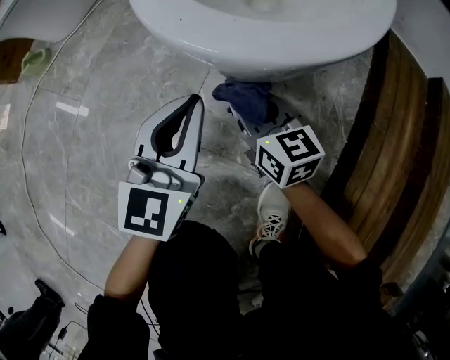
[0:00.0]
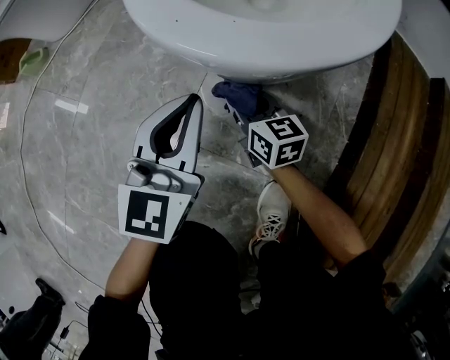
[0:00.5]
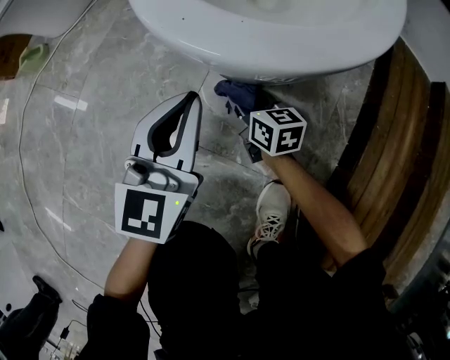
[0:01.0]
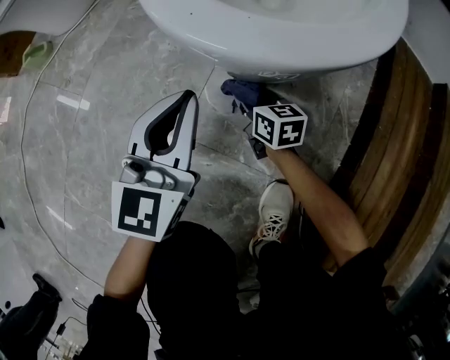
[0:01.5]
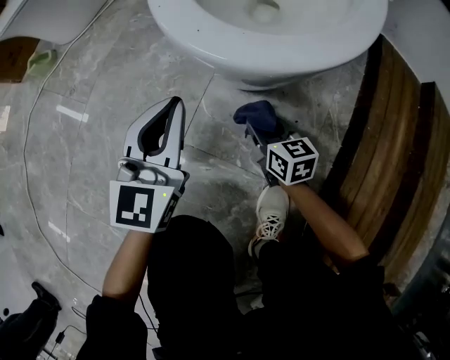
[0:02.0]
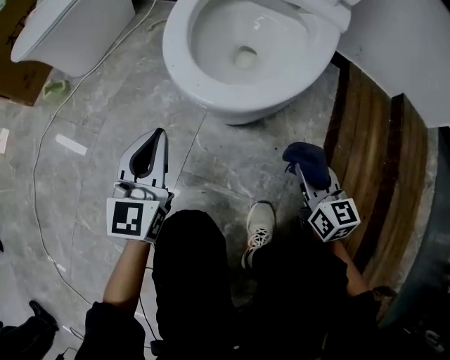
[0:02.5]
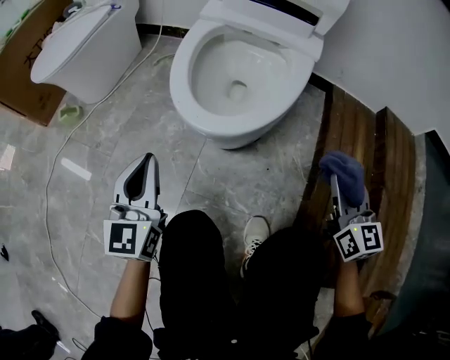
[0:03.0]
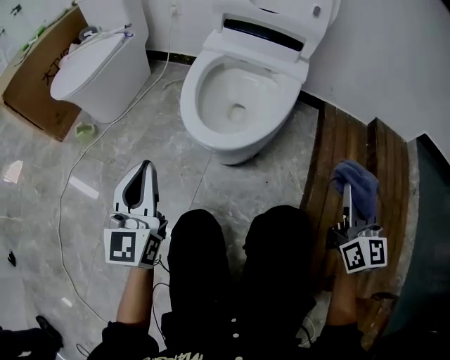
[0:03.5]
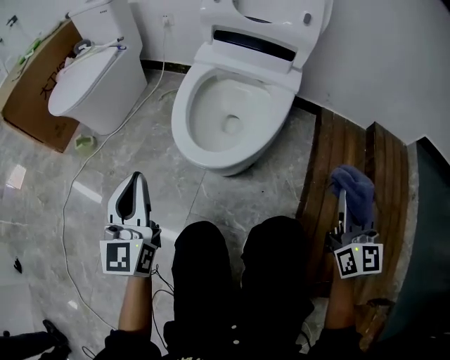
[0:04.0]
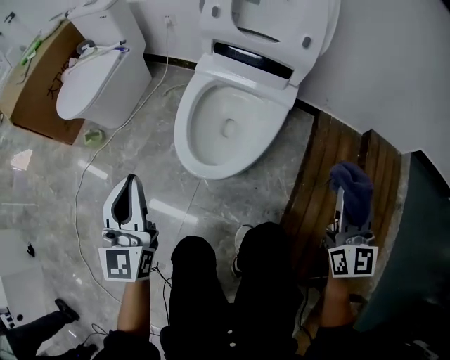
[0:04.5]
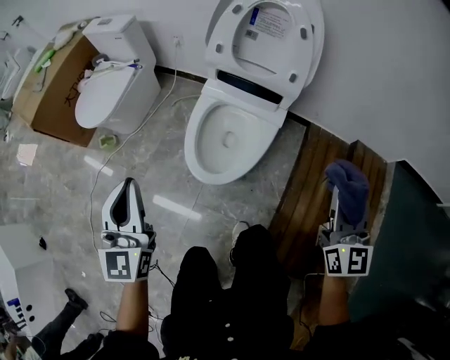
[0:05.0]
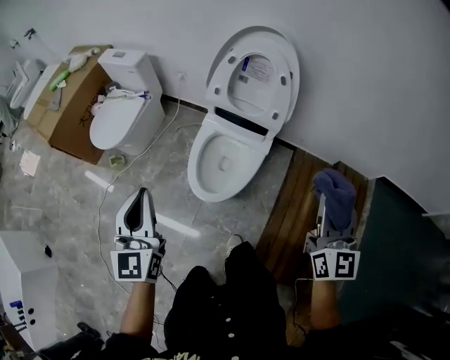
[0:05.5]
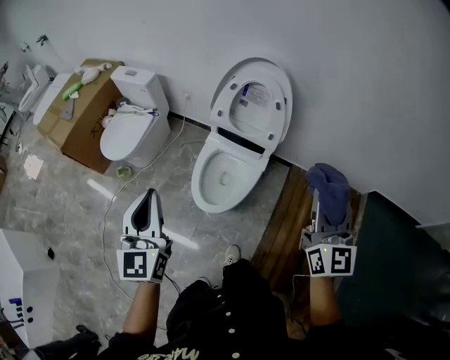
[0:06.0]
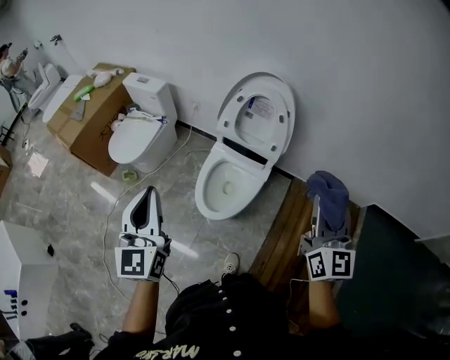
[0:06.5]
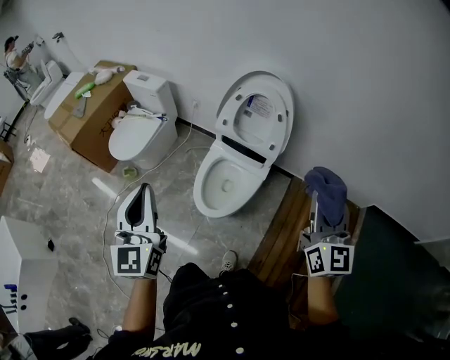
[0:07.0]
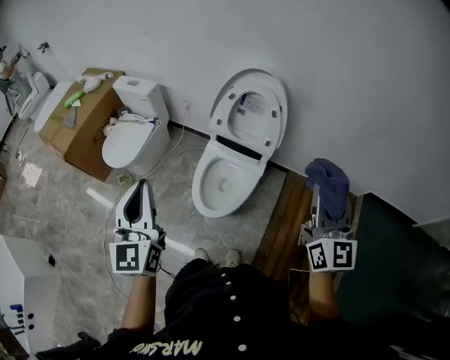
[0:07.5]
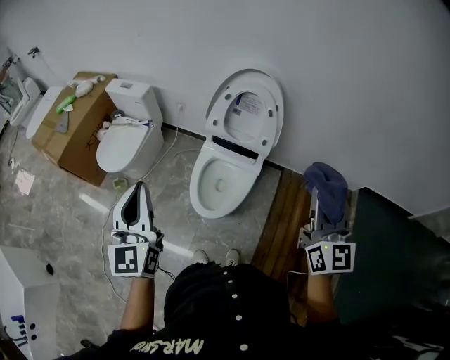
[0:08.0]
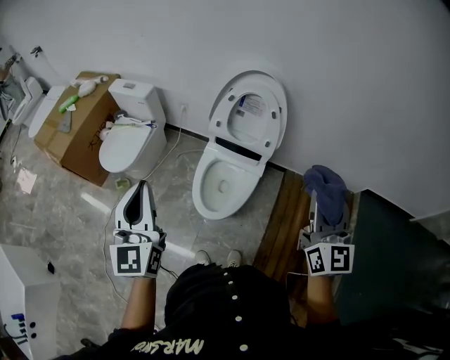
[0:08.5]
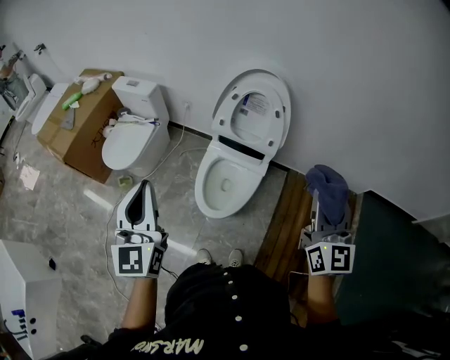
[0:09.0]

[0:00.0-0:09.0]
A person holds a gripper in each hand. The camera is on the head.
0:00.0 to 0:02.0: The right gripper moves downward, approximately 10 cm.
0:02.0 to 0:04.5: The right gripper travels upward and to the right by approximately 70 cm, and tilts its fingers roughly 30 degrees upward. The left gripper heads upward, covering some 40 cm.
0:04.5 to 0:07.0: Both grippers move upward, about 50 cm.
0:07.0 to 0:09.0: The right gripper shifts by approximately 5 cm; the left gripper shifts by roughly 5 cm.

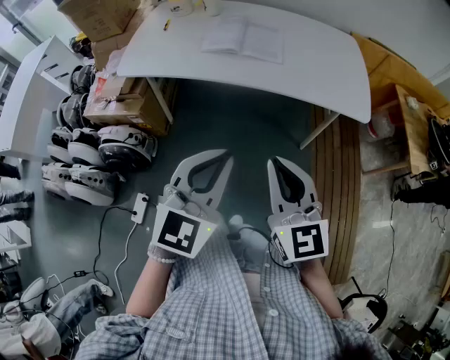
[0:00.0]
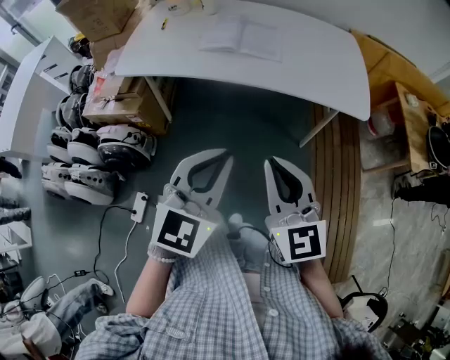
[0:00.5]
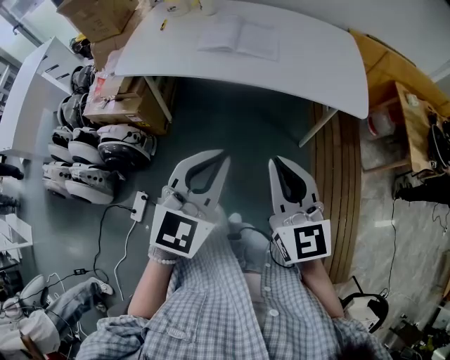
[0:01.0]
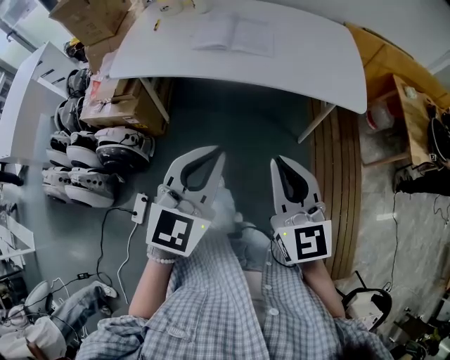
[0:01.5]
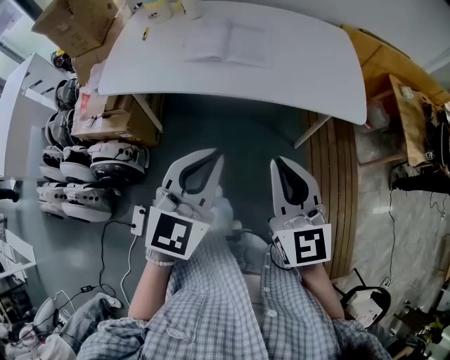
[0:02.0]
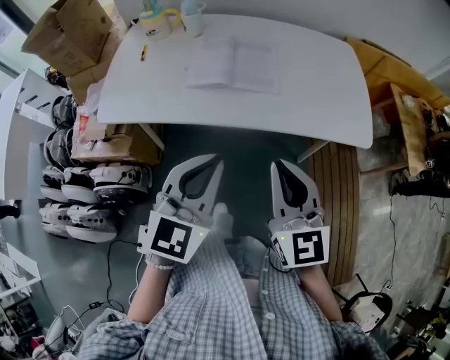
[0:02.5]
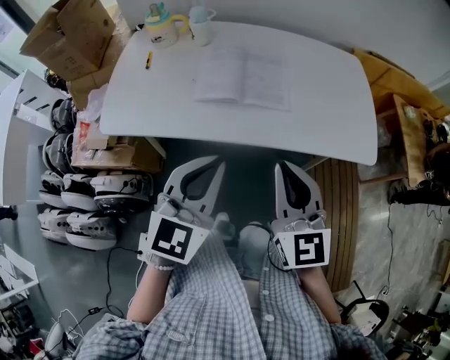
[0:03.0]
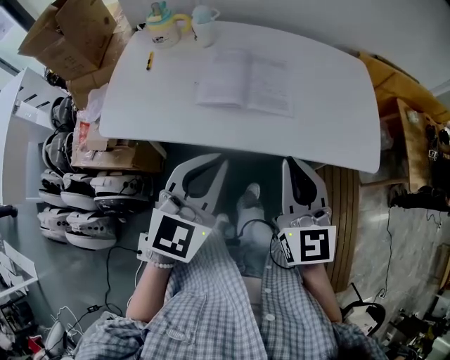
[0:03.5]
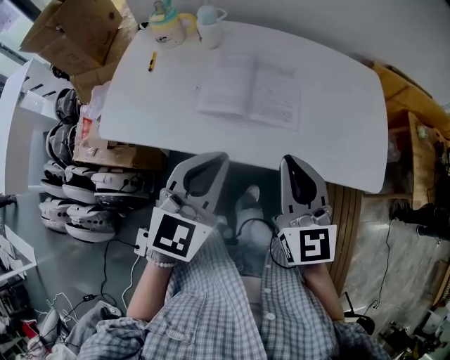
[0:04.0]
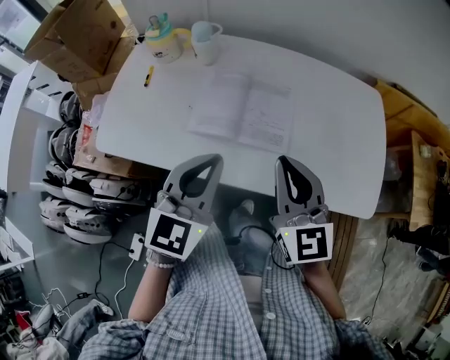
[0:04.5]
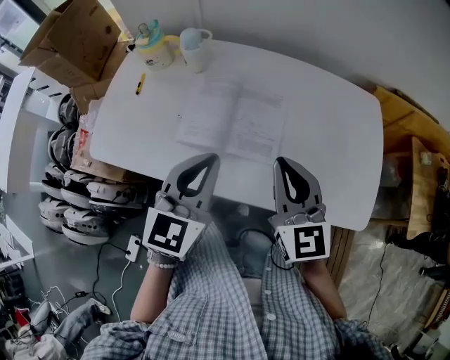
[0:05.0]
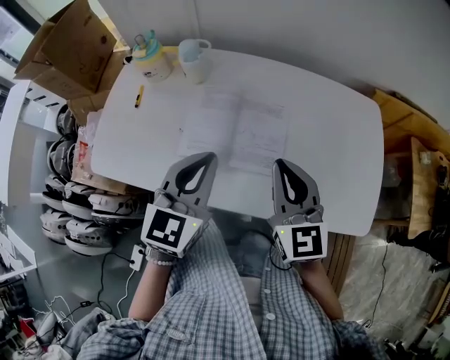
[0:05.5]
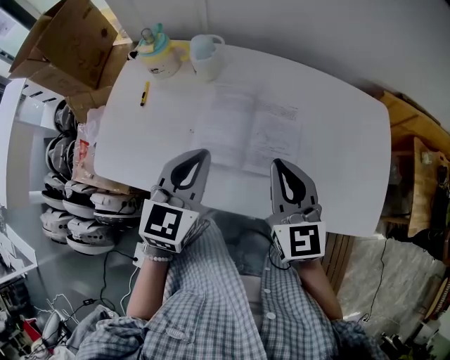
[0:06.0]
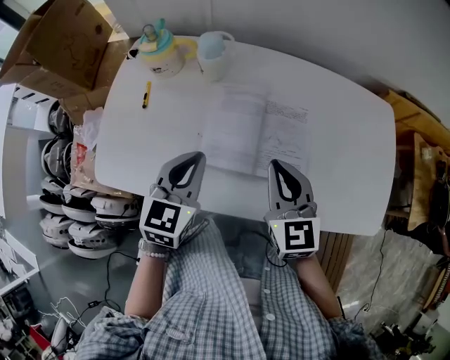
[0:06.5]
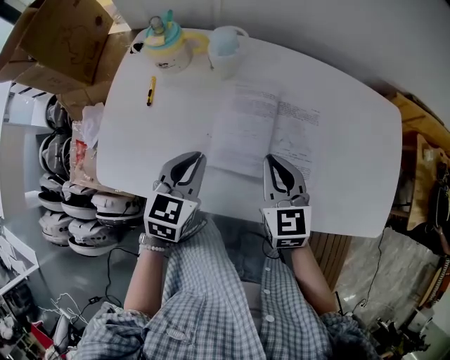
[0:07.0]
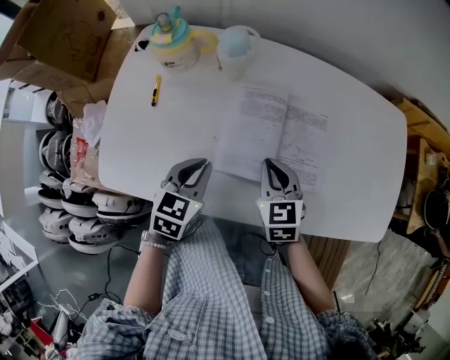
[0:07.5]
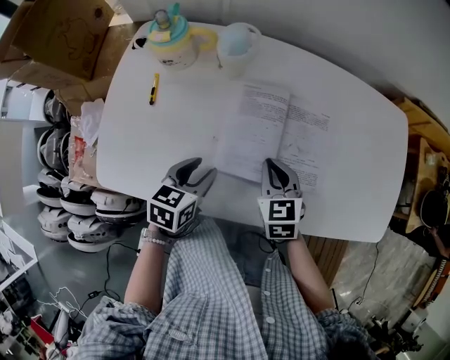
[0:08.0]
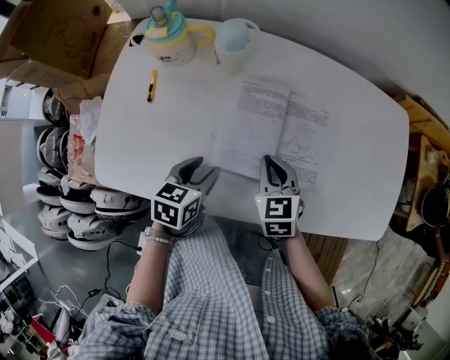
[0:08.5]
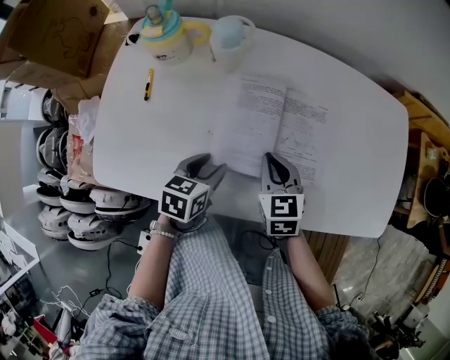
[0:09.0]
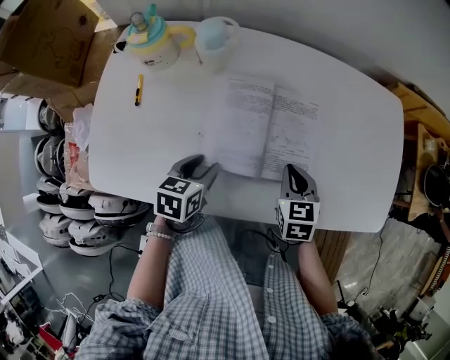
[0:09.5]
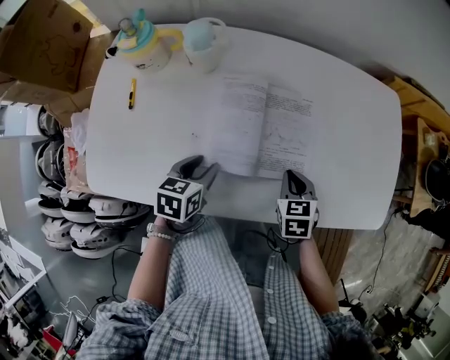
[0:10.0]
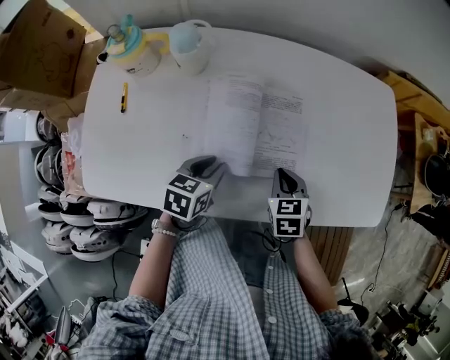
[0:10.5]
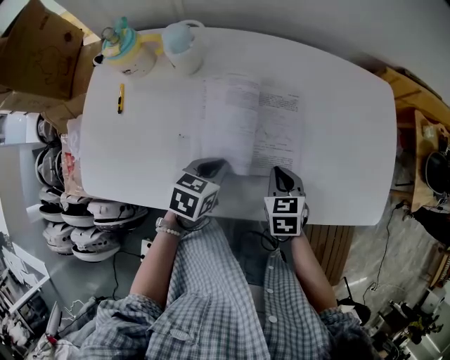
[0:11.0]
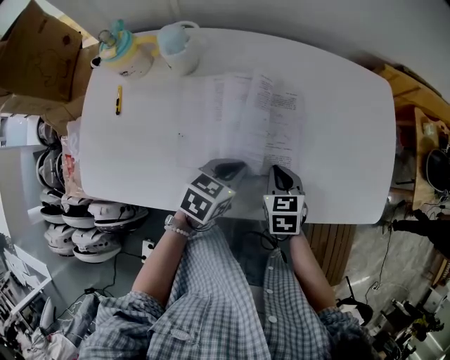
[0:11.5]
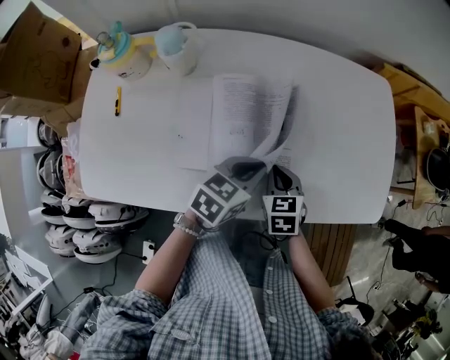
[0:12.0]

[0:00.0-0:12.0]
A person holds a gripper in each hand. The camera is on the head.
0:00.0 to 0:02.0: The grippers both shift forward by approximately 5 cm.
0:02.0 to 0:04.0: The grippers both shift forward by approximately 25 cm.
0:04.0 to 0:06.0: The two grippers go approximately 15 cm forward.
0:06.0 to 0:08.0: The grippers both shift downward and to the left by roughly 20 cm. The left gripper turns by some 30 degrees, and opens its fingers; the right gripper changes its angle by roughly 30 degrees.
0:08.0 to 0:10.0: The right gripper heads to the right, covering some 15 cm. Meanwhile the left gripper is displaced to the right by some 5 cm.
0:10.0 to 0:12.0: The left gripper shifts roughly 20 cm to the right and upward, turns by roughly 30 degrees, and closes up.

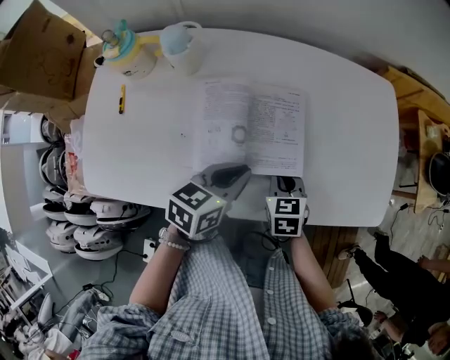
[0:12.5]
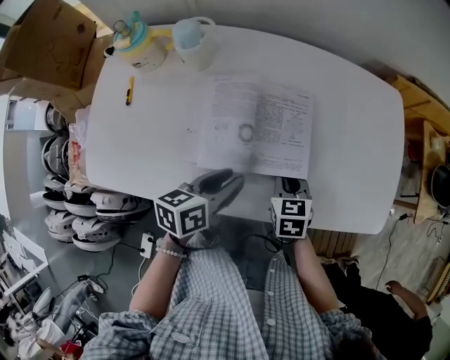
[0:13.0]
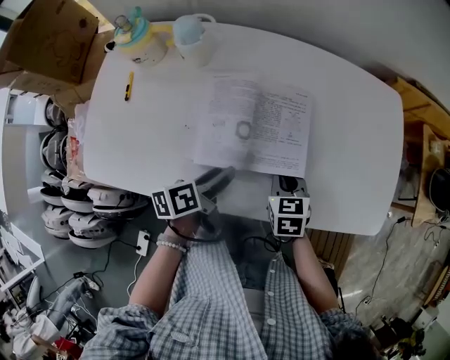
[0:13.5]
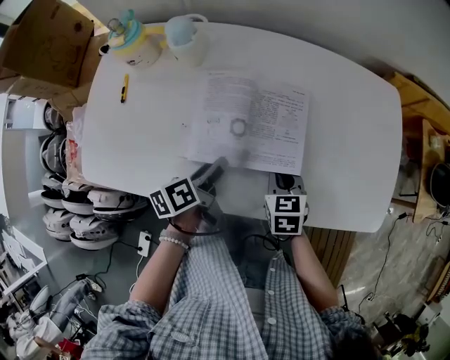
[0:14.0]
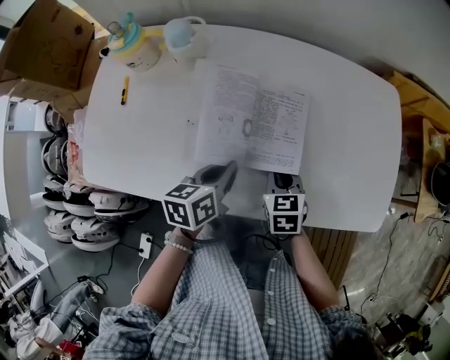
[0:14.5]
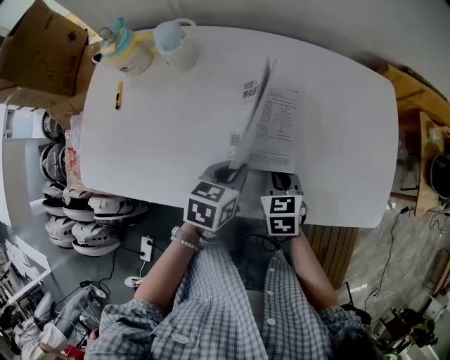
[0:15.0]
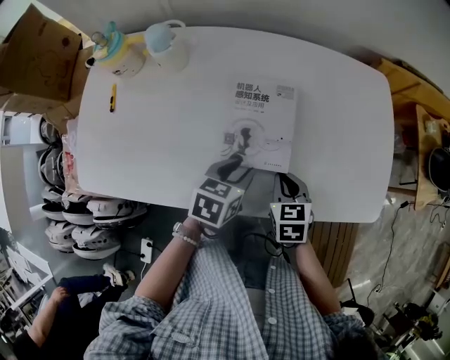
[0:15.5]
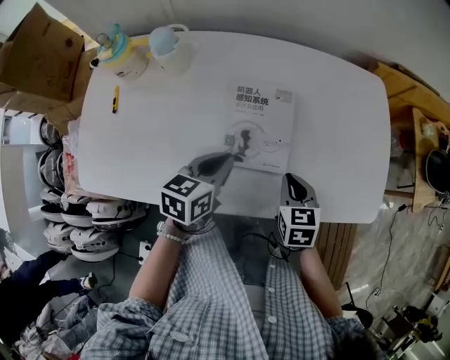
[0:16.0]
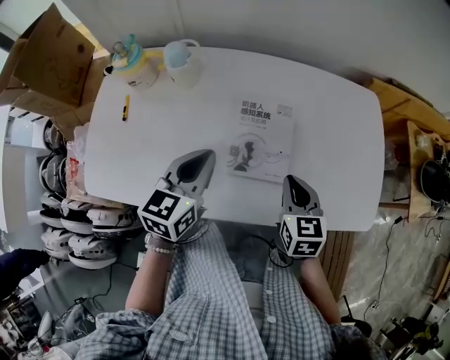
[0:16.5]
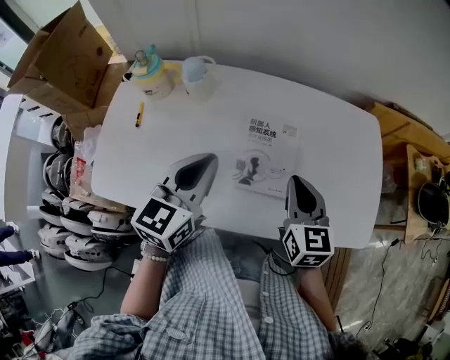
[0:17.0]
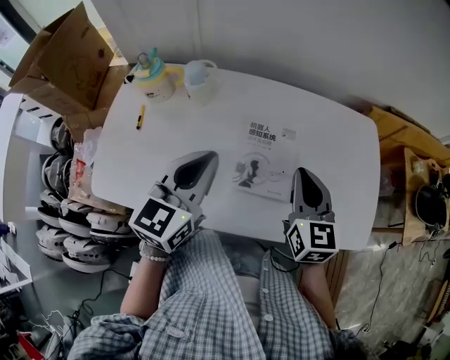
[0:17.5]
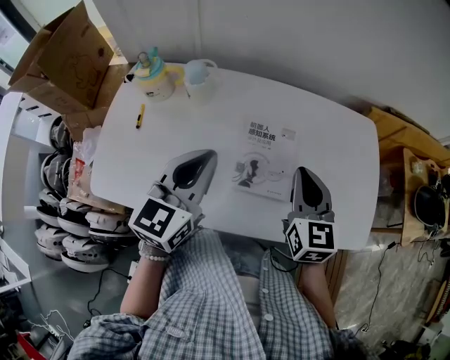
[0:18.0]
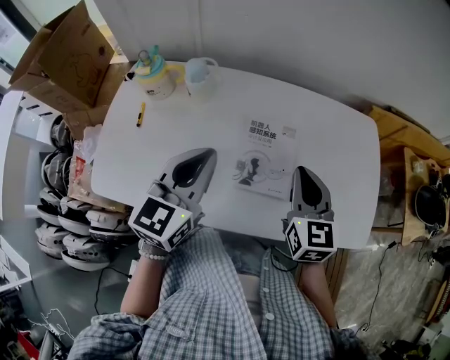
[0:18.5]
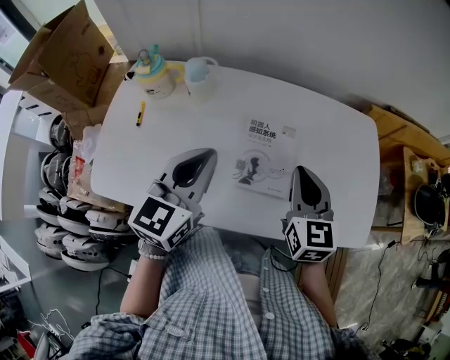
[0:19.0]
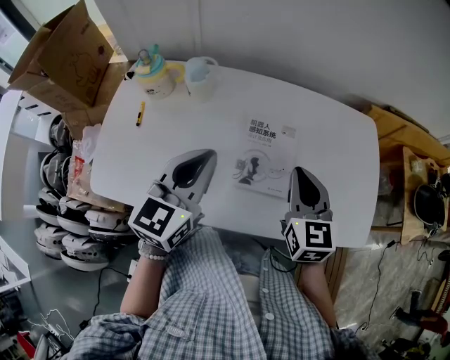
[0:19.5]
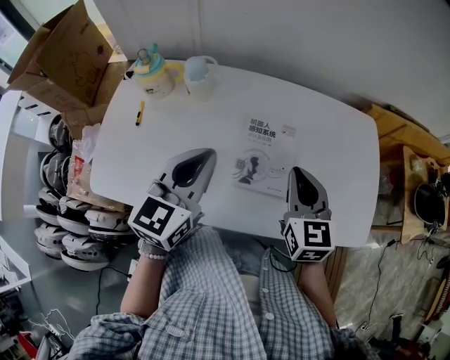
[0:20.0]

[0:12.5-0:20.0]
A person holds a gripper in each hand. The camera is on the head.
0:12.5 to 0:14.5: The left gripper turns by roughly 30 degrees, and opens, then closes once more.
0:14.5 to 0:16.5: The two grippers go about 10 cm upward. The left gripper changes its angle by roughly 30 degrees, and opens, then closes again.
0:16.5 to 0:18.0: The grippers both shift upward by some 10 cm.
0:18.0 to 0:20.0: There are only small adjustments of the grippers.
